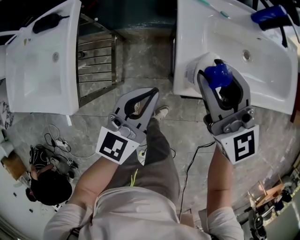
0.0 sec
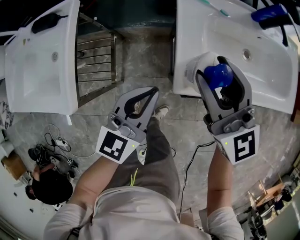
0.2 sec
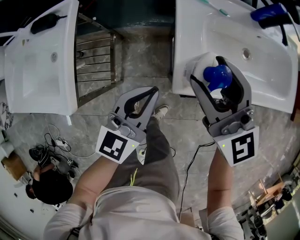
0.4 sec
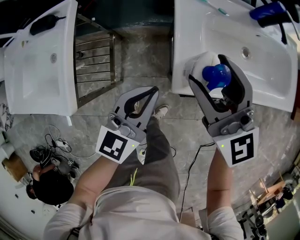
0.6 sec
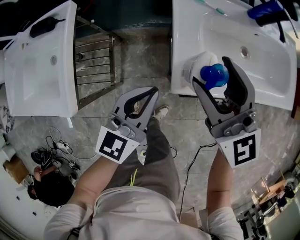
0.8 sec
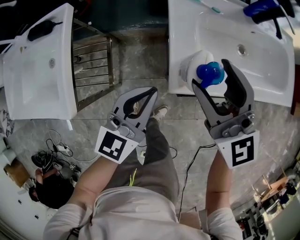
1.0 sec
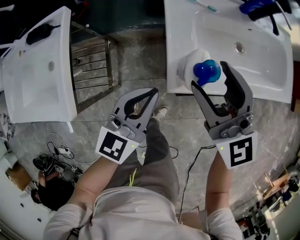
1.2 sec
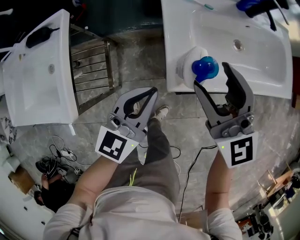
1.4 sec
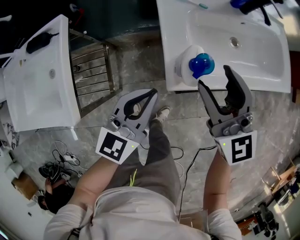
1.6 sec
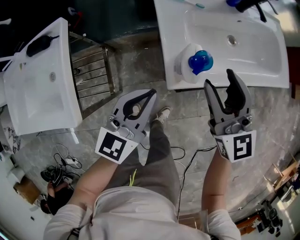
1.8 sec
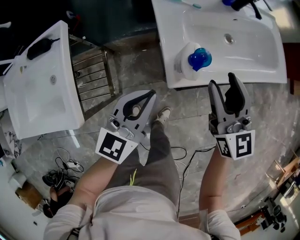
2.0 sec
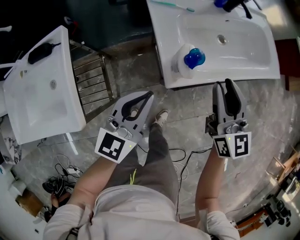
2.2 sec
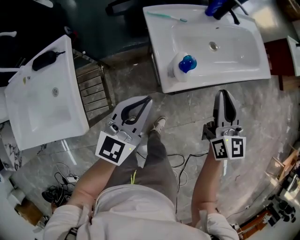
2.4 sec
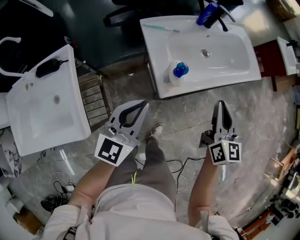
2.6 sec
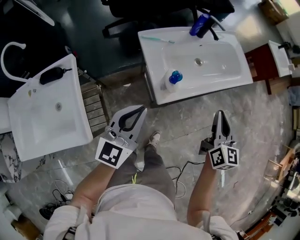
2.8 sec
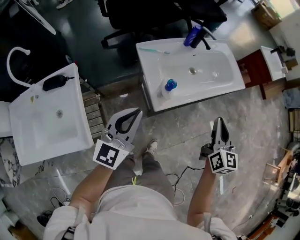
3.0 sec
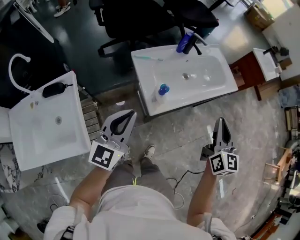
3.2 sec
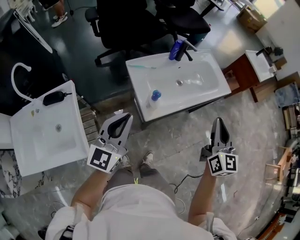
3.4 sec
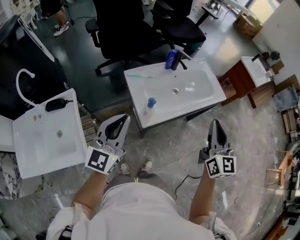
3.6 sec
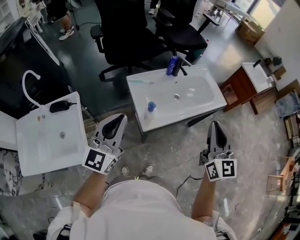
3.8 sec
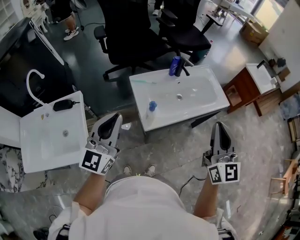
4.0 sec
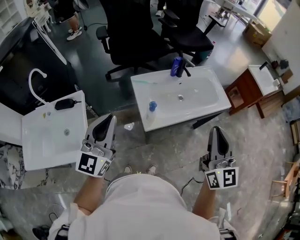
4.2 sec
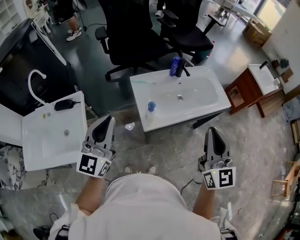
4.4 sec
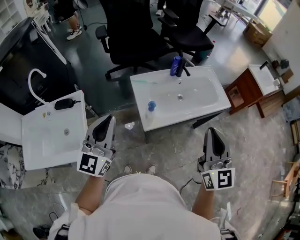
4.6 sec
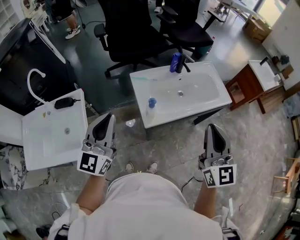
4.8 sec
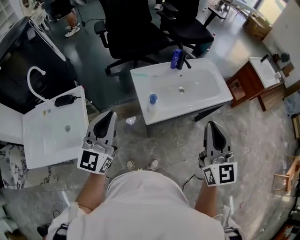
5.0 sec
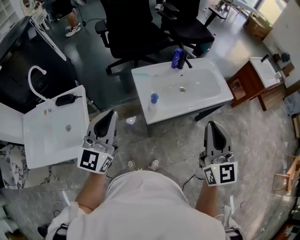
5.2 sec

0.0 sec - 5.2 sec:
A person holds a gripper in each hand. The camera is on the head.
0.0 sec - 1.8 sec: The right gripper travels to the right by some 5 cm, swivels some 20 degrees, and opens its fingers.
1.8 sec - 3.4 sec: The left gripper travels upward by roughly 25 cm; the right gripper is displaced upward, to the right and backward by approximately 30 cm, changes its angle by approximately 40 degrees, and closes.
3.4 sec - 5.2 sec: The right gripper is displaced upward and backward by some 10 cm. The left gripper goes approximately 10 cm upward.

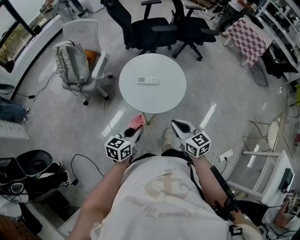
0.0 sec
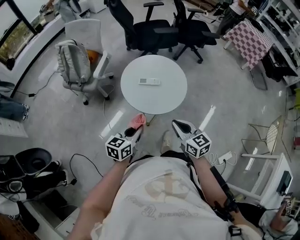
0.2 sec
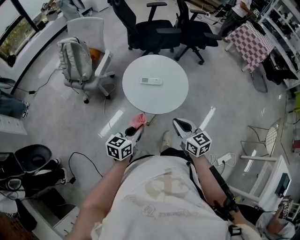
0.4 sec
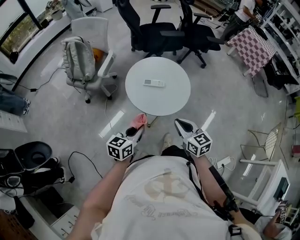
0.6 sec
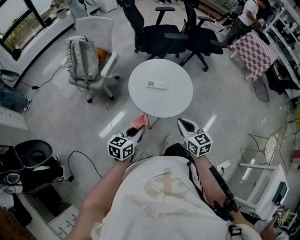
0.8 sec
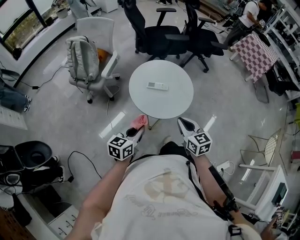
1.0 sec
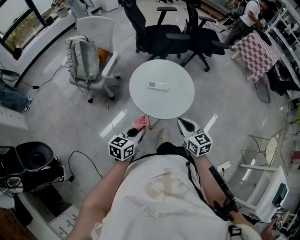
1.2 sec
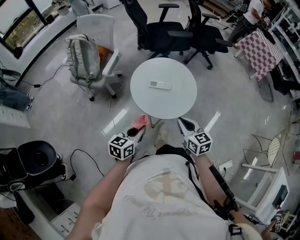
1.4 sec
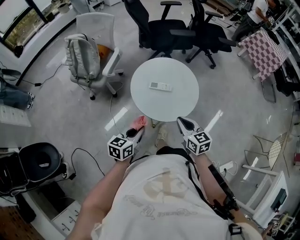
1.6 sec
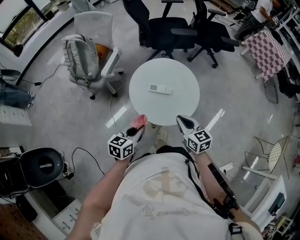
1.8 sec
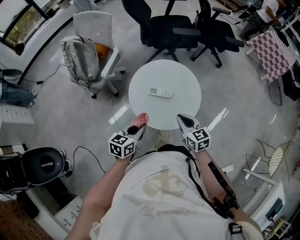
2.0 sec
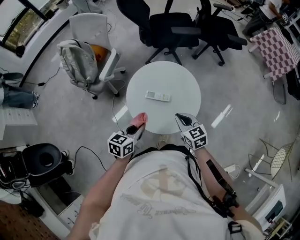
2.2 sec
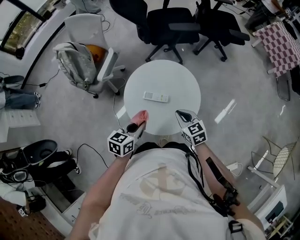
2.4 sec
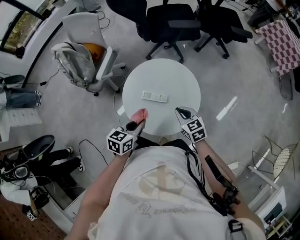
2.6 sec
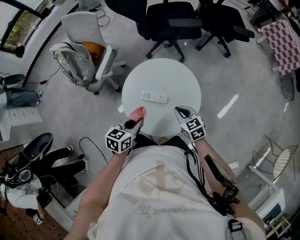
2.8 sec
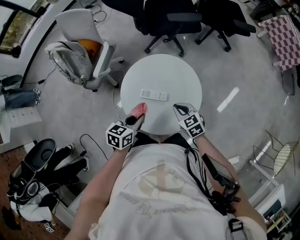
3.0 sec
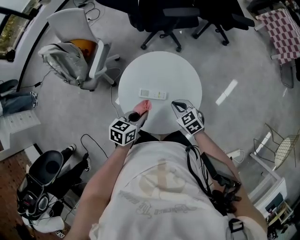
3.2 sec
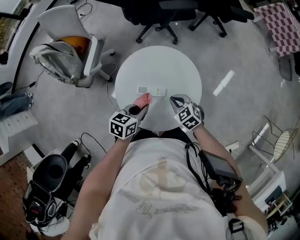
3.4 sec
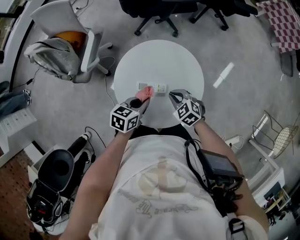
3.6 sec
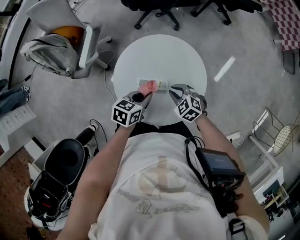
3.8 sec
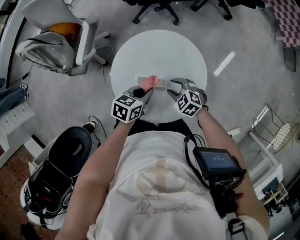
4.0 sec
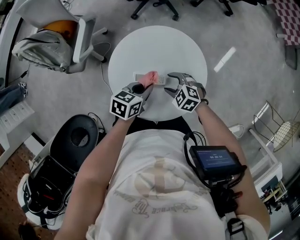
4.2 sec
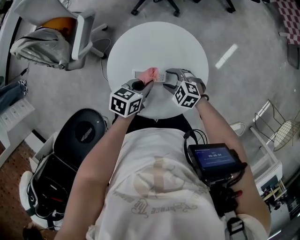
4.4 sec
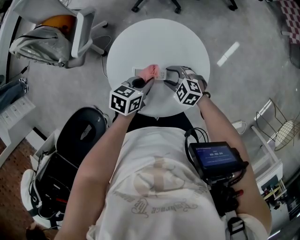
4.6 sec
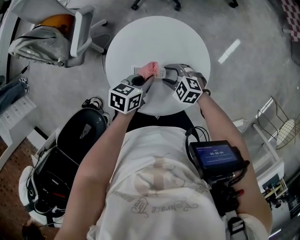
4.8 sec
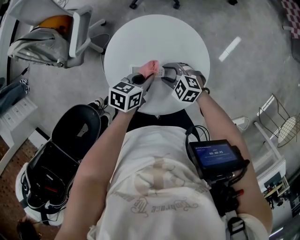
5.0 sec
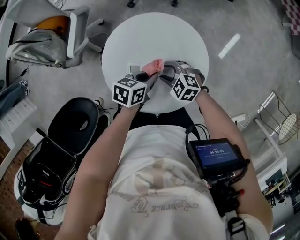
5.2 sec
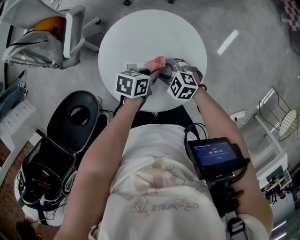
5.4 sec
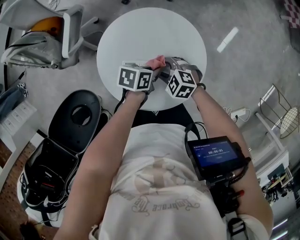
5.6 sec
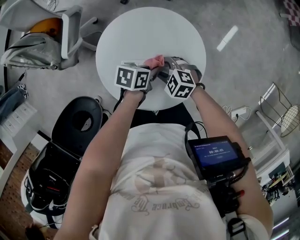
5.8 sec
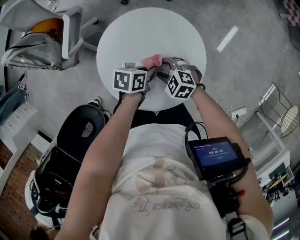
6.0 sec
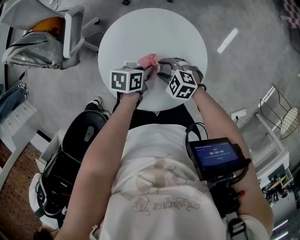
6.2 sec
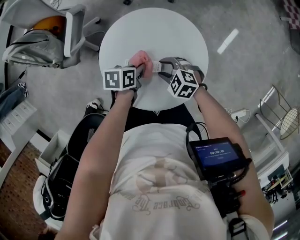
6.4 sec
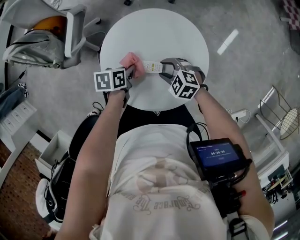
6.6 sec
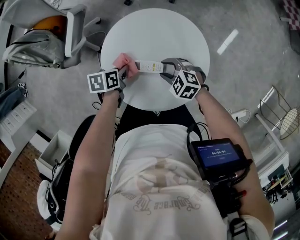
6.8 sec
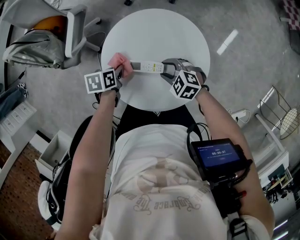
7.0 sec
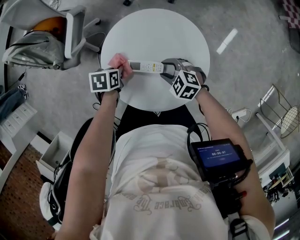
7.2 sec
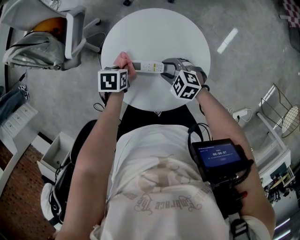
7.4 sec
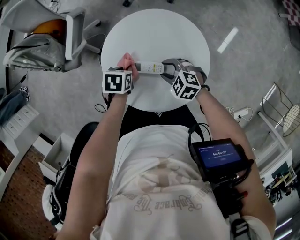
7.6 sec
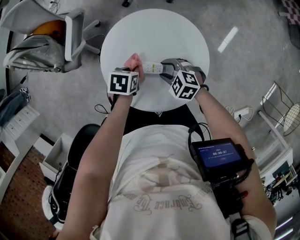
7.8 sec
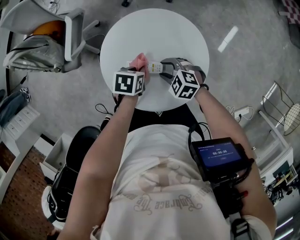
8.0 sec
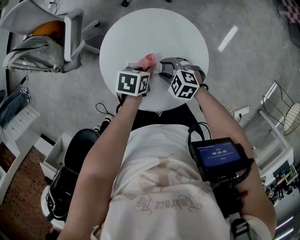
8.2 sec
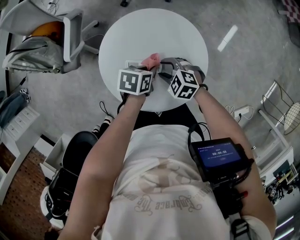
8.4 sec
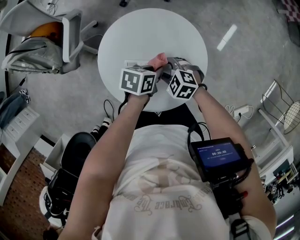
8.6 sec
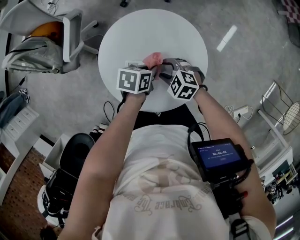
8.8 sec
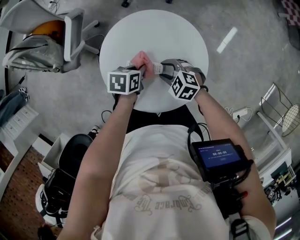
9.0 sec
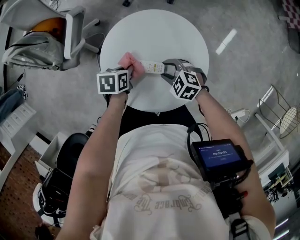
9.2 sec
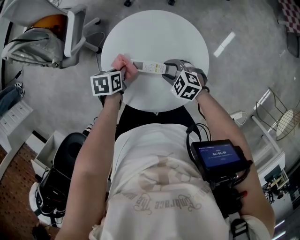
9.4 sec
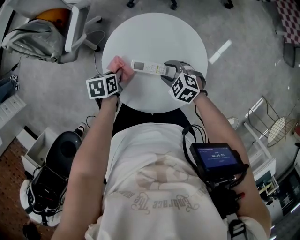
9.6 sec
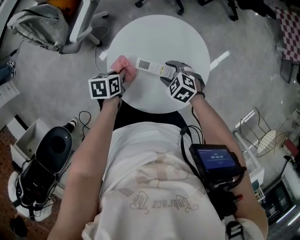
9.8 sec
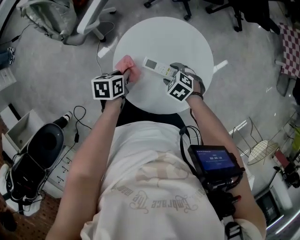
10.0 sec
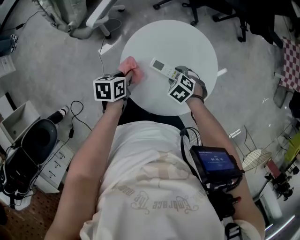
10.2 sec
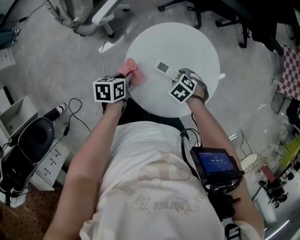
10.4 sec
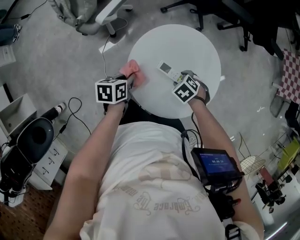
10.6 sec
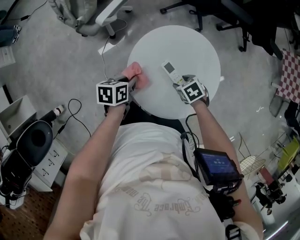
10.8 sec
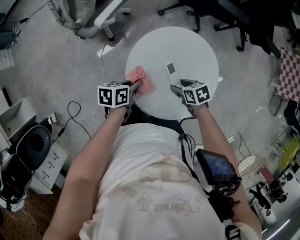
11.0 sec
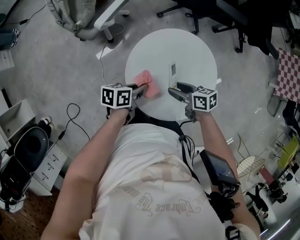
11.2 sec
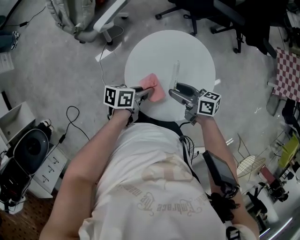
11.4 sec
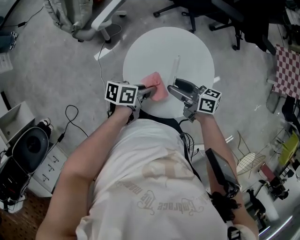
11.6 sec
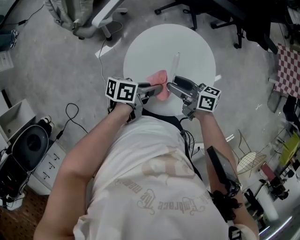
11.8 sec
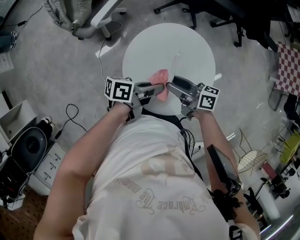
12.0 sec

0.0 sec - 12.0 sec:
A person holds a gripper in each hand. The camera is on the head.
0.0 sec - 1.6 sec: The left gripper shifts by some 5 cm. The right gripper shifts about 10 cm forward.
1.6 sec - 3.0 sec: The left gripper travels forward by approximately 20 cm. The right gripper heads forward and downward, covering about 20 cm, and turns by some 20 degrees.
3.0 sec - 4.4 sec: The left gripper ends up approximately 15 cm from where it was. Meanwhile the right gripper shifts roughly 10 cm downward, rotates about 30 degrees, and opens up.
4.4 sec - 6.0 sec: The left gripper moves about 5 cm.
6.0 sec - 7.6 sec: The left gripper changes place by some 10 cm, and changes its angle by approximately 30 degrees.
9.0 sec - 10.4 sec: The left gripper changes place by about 20 cm, and turns by approximately 30 degrees; the right gripper points its fingers some 30 degrees further downward.
10.4 sec - 12.0 sec: The left gripper changes place by roughly 15 cm, and tilts its fingers roughly 40 degrees upward; the right gripper moves upward, about 15 cm, and angles its fingers upward, by some 70 degrees.

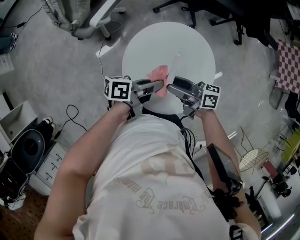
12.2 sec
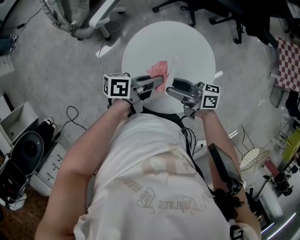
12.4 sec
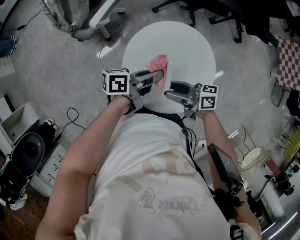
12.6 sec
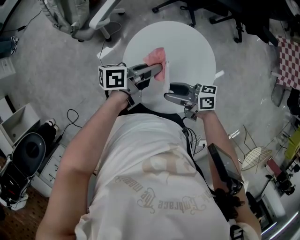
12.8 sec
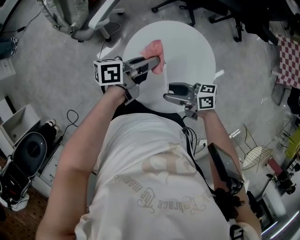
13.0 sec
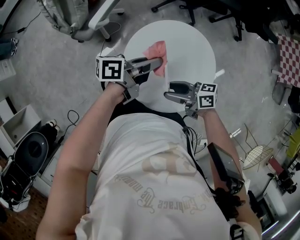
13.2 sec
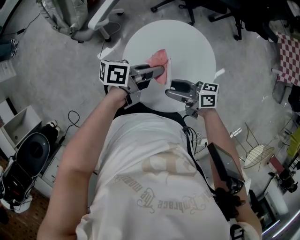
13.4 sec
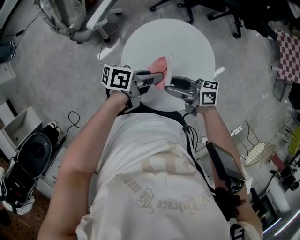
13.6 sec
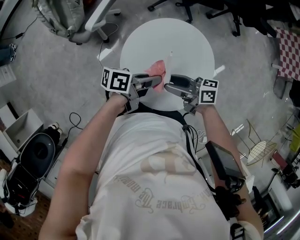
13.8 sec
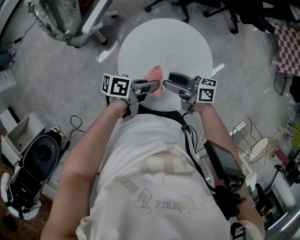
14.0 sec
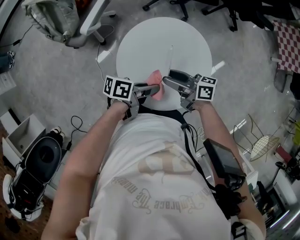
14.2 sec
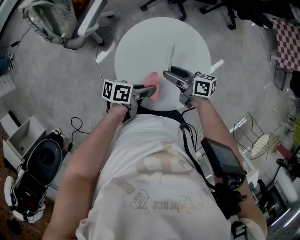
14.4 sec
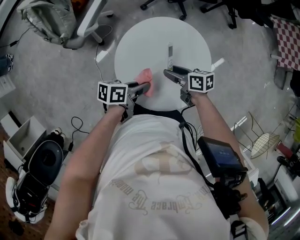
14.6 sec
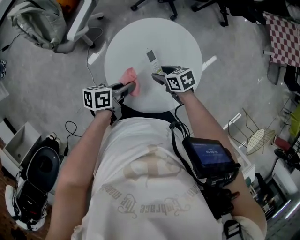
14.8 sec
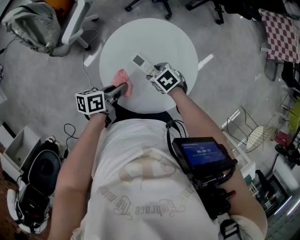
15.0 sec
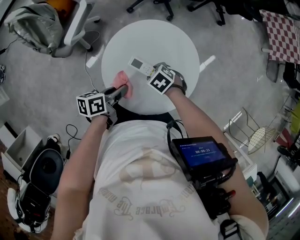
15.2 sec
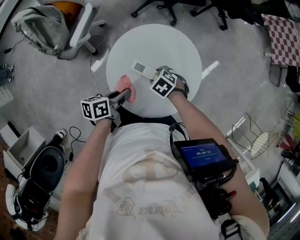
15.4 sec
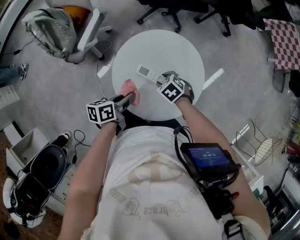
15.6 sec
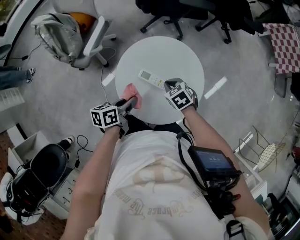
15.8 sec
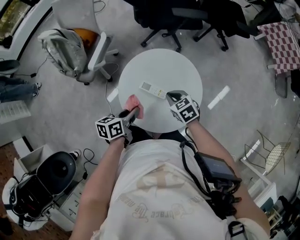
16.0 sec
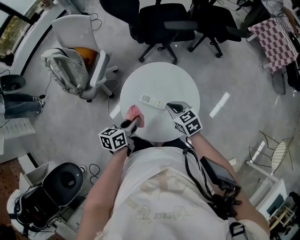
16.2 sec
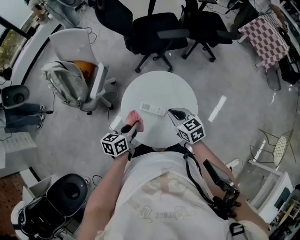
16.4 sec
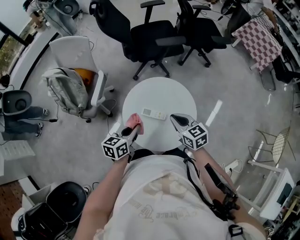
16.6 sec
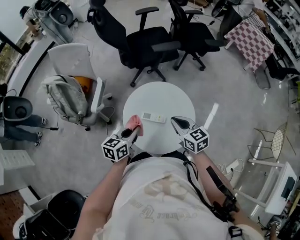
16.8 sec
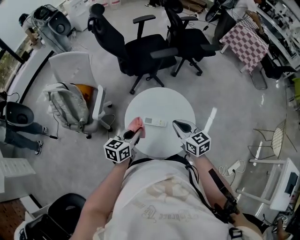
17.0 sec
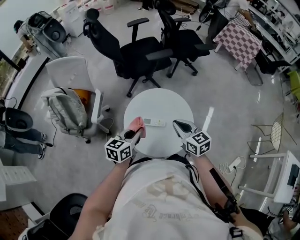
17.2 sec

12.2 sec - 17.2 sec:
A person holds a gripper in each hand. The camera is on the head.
13.8 sec - 15.6 sec: The right gripper travels downward by about 15 cm, and tilts its fingers roughly 60 degrees downward. Meanwhile the left gripper changes place by about 10 cm, and changes its angle by some 30 degrees.
15.6 sec - 17.2 sec: The left gripper heads upward, covering approximately 15 cm, and twists approximately 40 degrees clockwise, seen from behind; the right gripper heads upward, covering some 25 cm, tilts its fingers roughly 50 degrees upward, and closes its fingers.

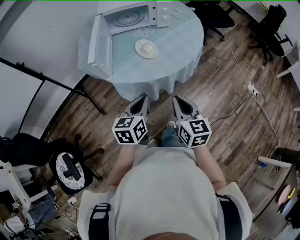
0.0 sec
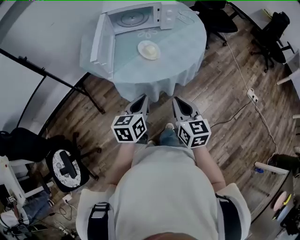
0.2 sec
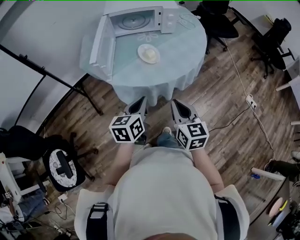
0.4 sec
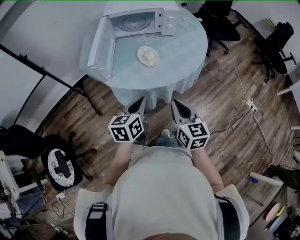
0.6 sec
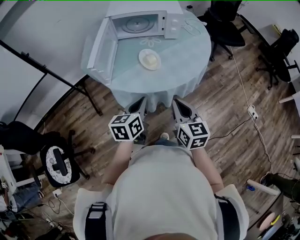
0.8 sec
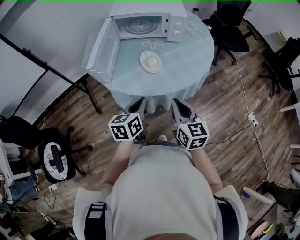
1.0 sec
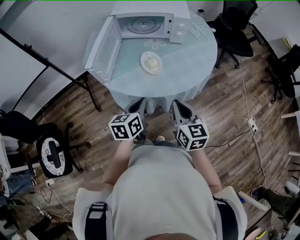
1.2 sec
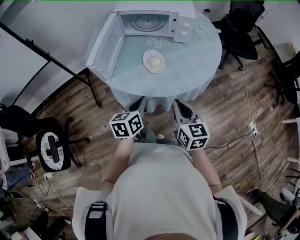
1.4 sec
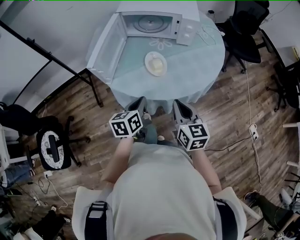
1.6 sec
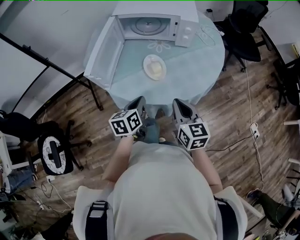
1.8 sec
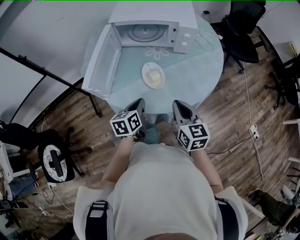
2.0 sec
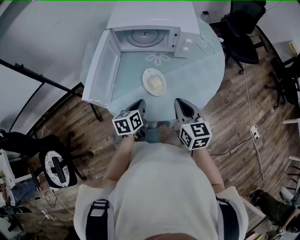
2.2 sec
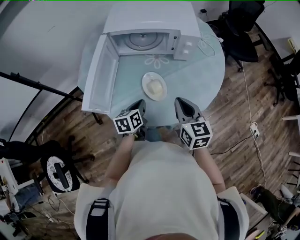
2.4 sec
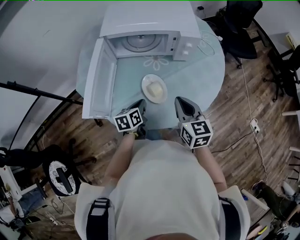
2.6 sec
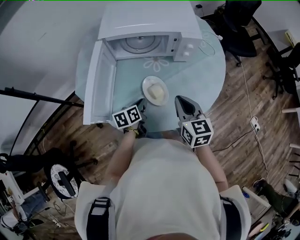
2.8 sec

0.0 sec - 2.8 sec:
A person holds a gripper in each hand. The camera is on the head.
0.0 sec - 1.4 sec: The right gripper travels forward and to the right by approximately 15 cm, while the left gripper travels forward by roughly 10 cm.
1.4 sec - 2.8 sec: The left gripper shifts some 25 cm forward and downward; the right gripper shifts roughly 20 cm forward.
